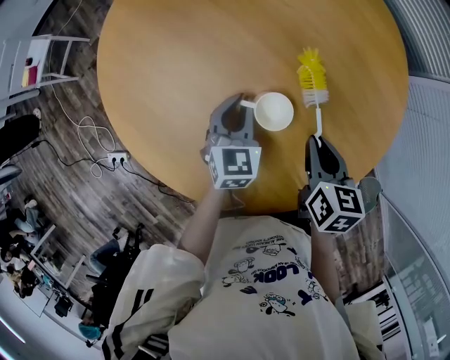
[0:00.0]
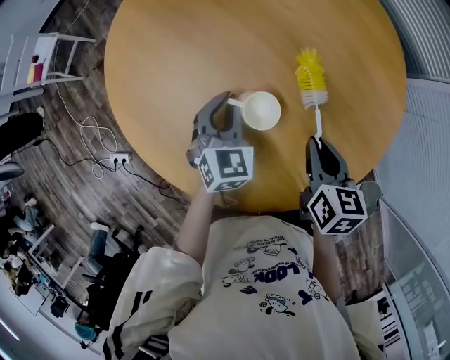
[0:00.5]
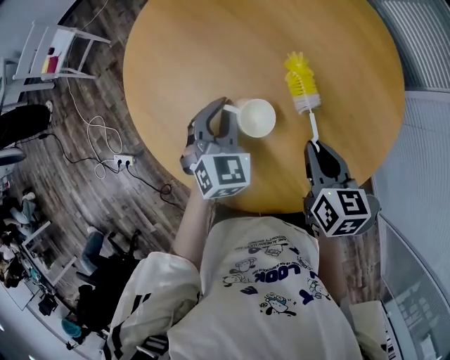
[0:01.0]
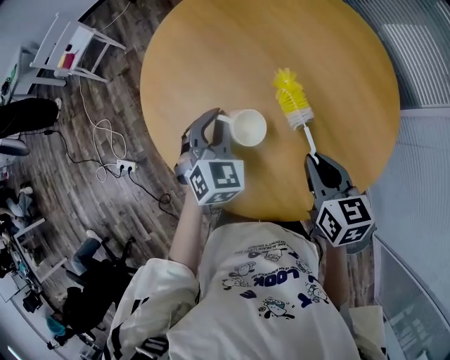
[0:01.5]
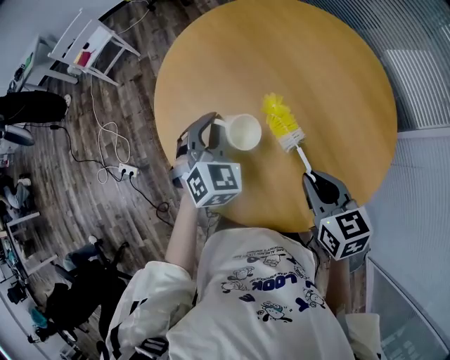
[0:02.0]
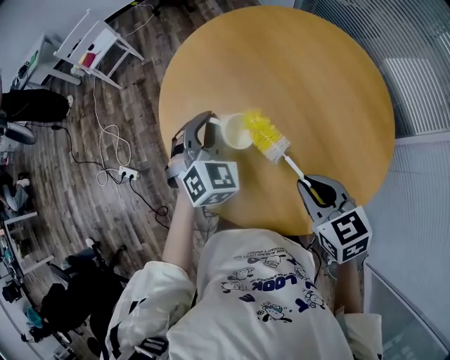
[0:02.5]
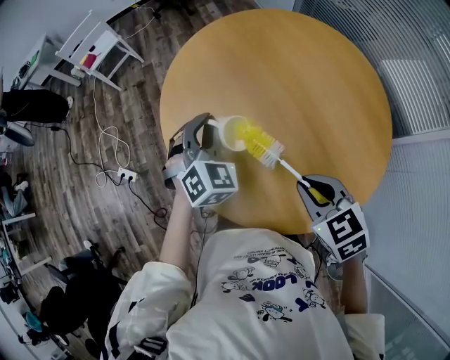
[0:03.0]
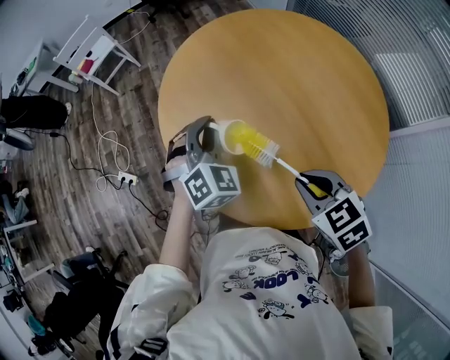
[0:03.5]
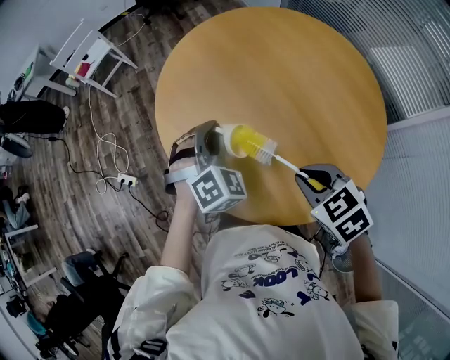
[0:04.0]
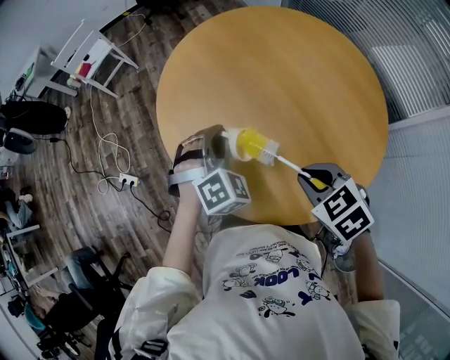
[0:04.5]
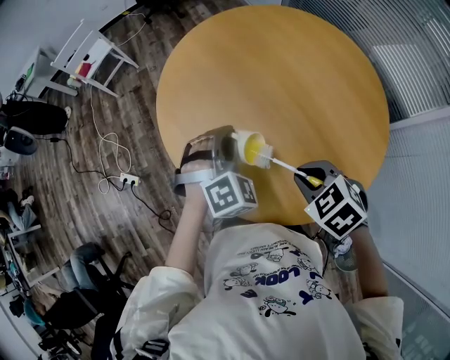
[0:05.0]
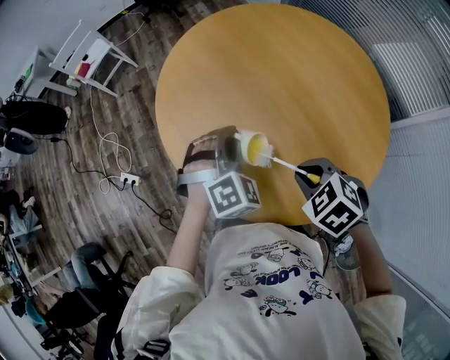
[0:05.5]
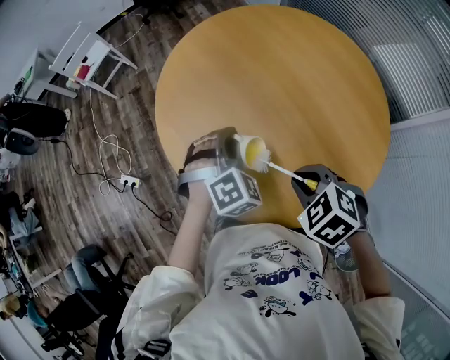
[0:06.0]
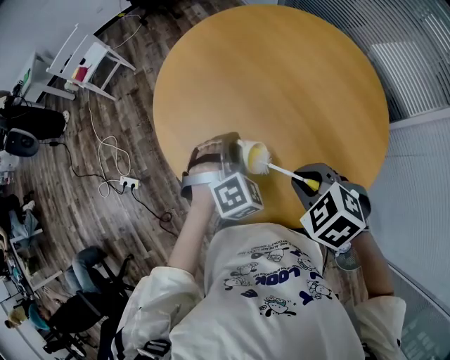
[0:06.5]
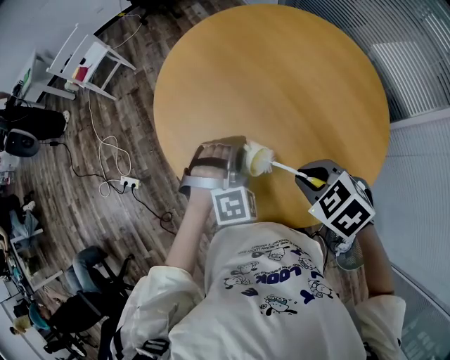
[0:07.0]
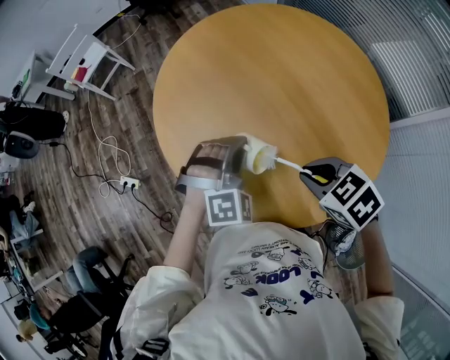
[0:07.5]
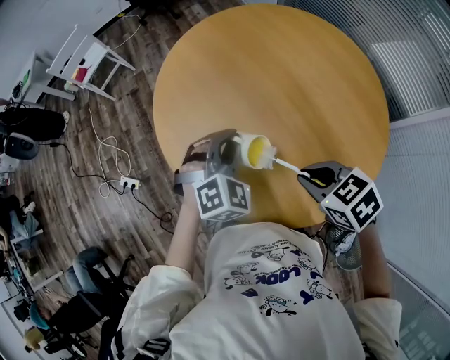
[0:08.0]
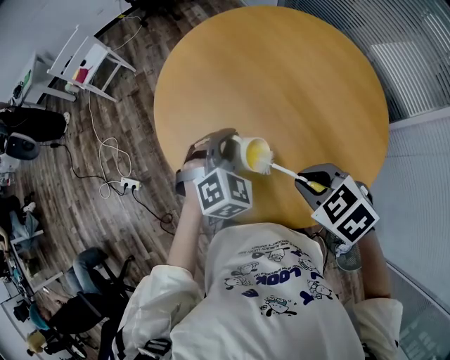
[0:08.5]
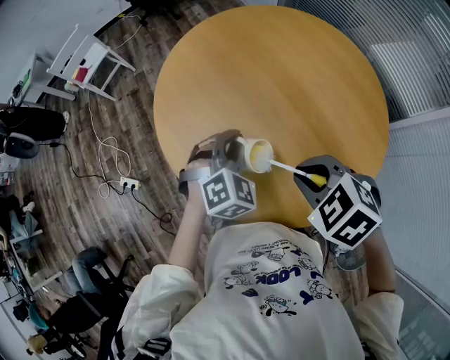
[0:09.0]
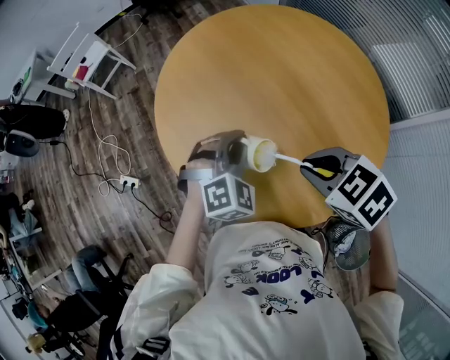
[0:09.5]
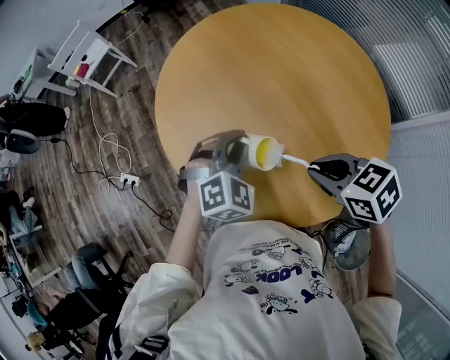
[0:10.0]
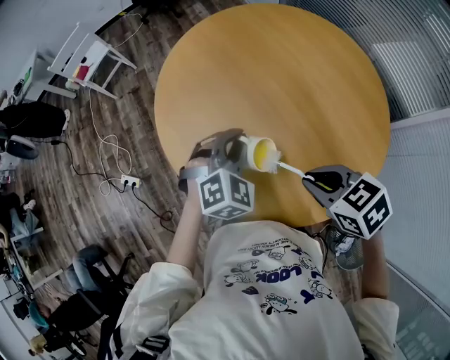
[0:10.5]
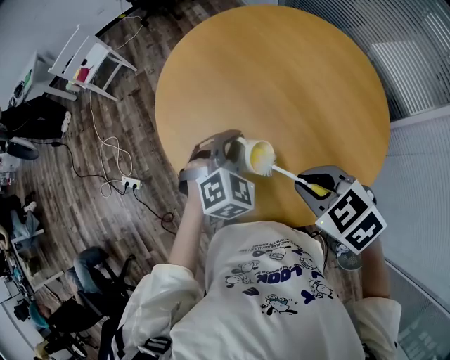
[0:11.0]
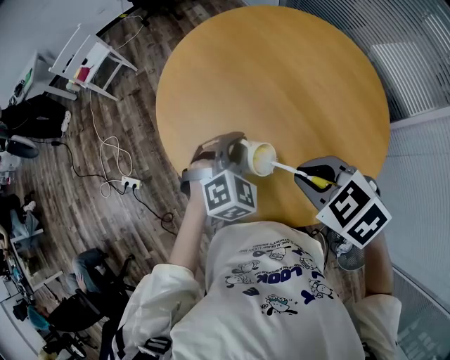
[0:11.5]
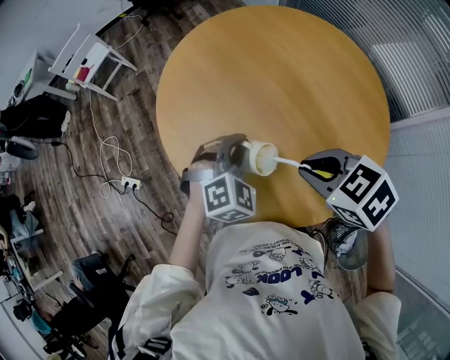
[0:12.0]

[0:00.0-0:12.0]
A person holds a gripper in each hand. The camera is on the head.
0:00.0 to 0:02.0: The two grippers go approximately 15 cm upward. The right gripper turns by approximately 40 degrees. The left gripper swivels some 30 degrees.
0:02.0 to 0:04.0: The right gripper turns by some 30 degrees. Meanwhile the left gripper moves roughly 5 cm.
0:04.0 to 0:06.0: The grippers move only a little.
0:06.0 to 0:08.0: The right gripper turns by about 20 degrees.
0:10.0 to 0:12.0: There are only small adjustments of the grippers.

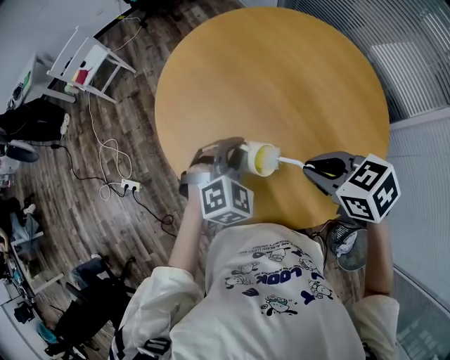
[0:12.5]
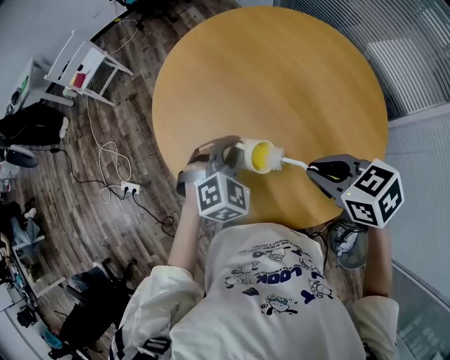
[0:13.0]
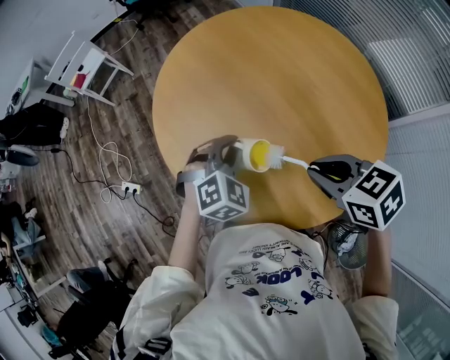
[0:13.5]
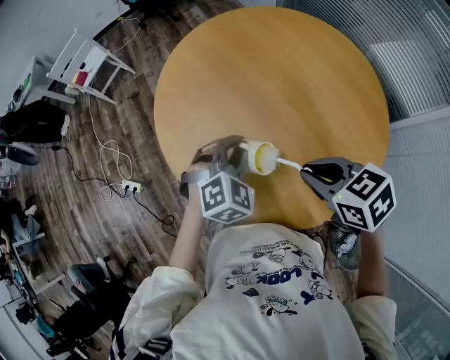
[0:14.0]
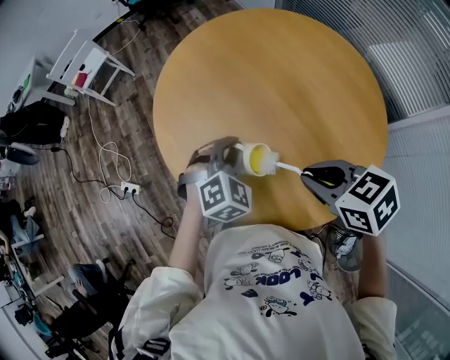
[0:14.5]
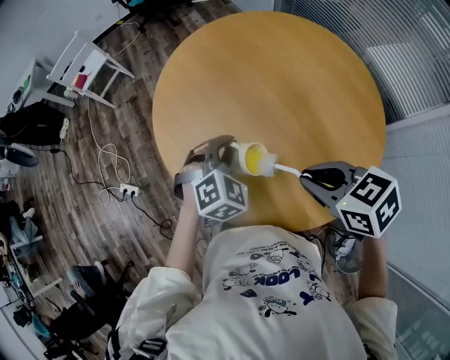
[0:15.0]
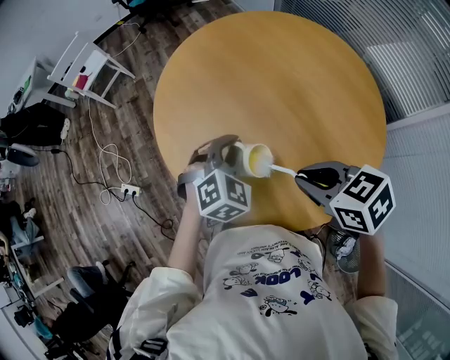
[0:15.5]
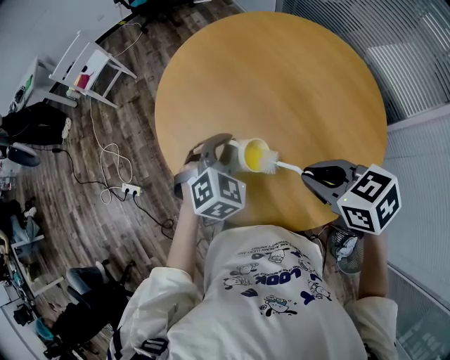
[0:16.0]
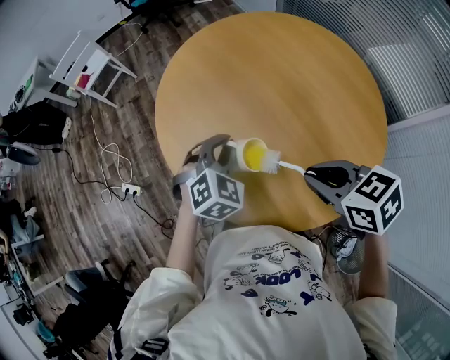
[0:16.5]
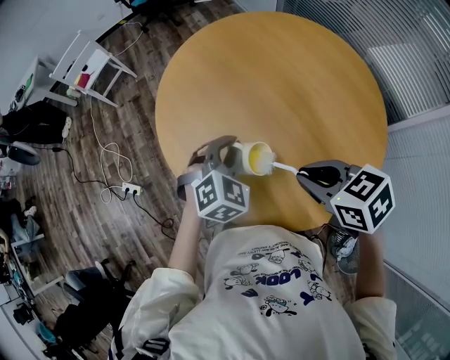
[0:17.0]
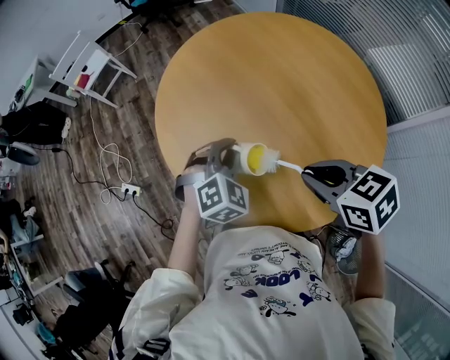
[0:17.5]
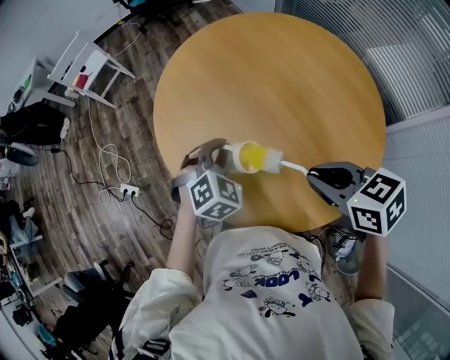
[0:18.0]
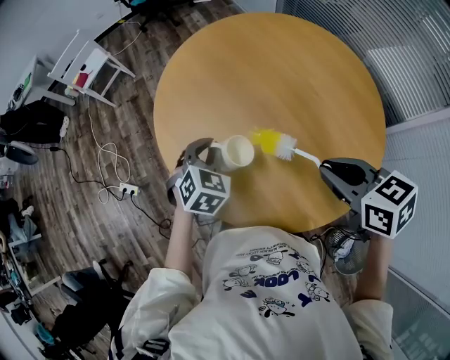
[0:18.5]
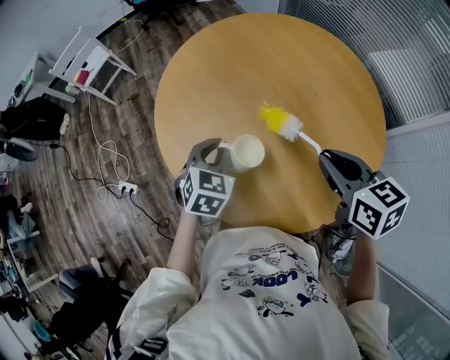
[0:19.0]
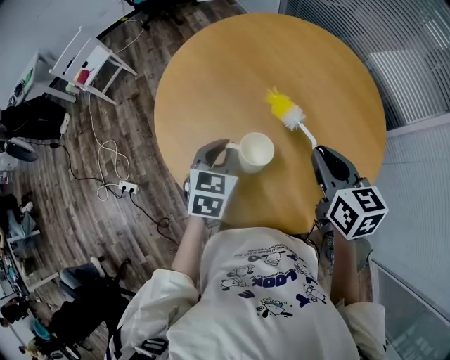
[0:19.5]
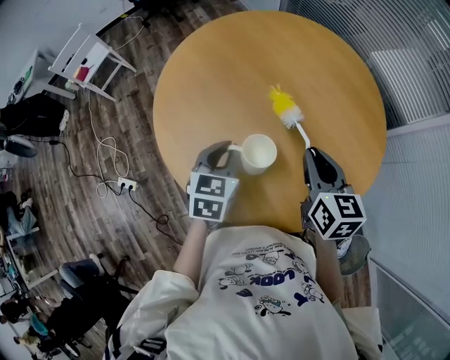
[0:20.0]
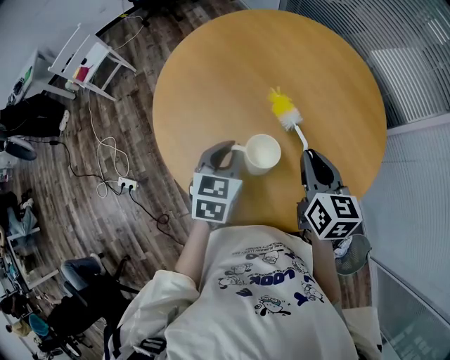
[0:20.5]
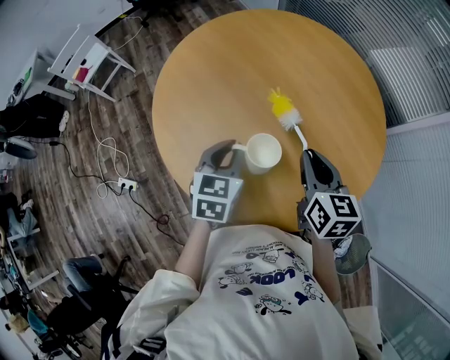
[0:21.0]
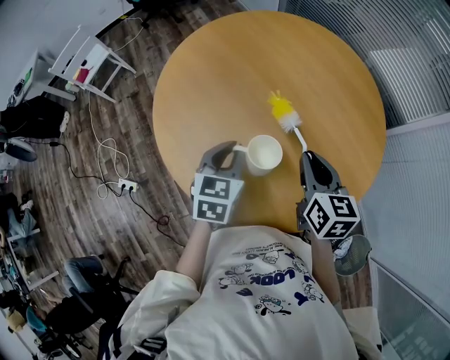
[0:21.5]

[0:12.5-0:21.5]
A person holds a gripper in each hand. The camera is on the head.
0:12.5 to 0:17.0: The grippers make only small movements.
0:17.0 to 0:19.5: The left gripper swivels some 30 degrees; the right gripper is displaced to the right by approximately 5 cm, and changes its angle by some 40 degrees.
0:19.5 to 0:21.5: The grippers move only a little.

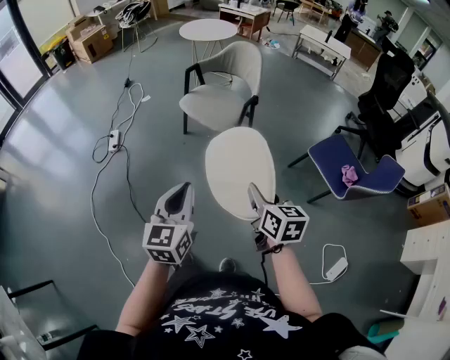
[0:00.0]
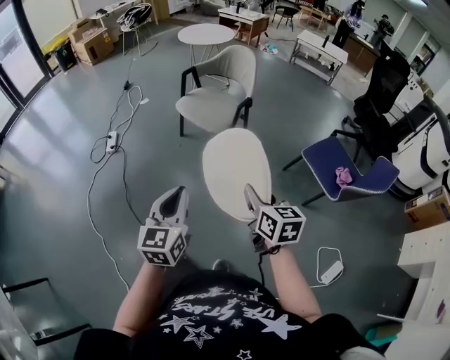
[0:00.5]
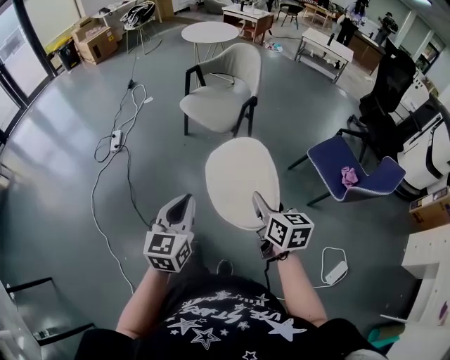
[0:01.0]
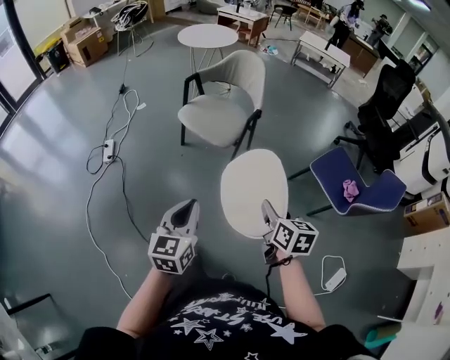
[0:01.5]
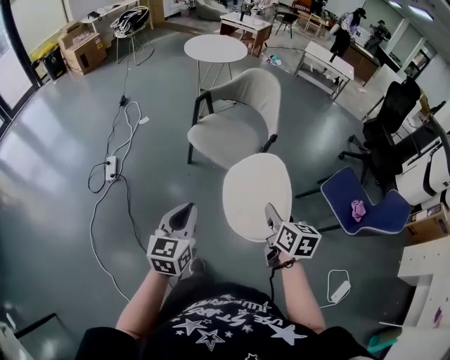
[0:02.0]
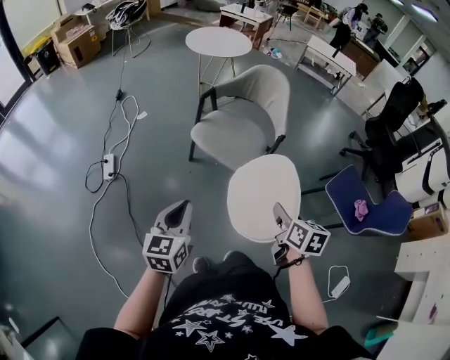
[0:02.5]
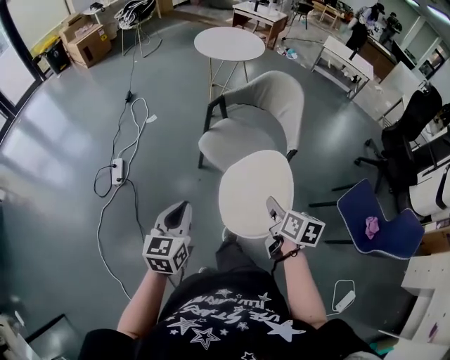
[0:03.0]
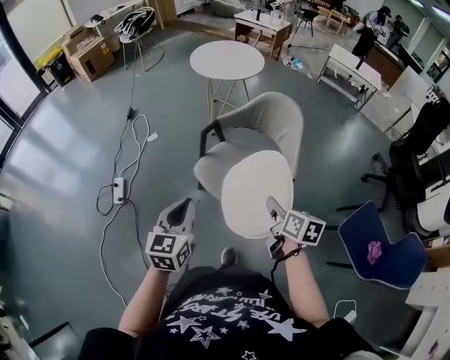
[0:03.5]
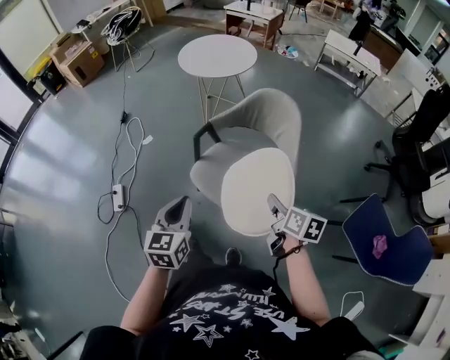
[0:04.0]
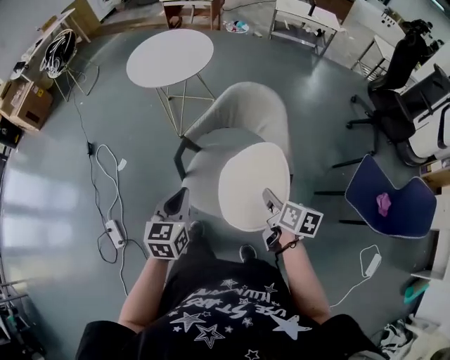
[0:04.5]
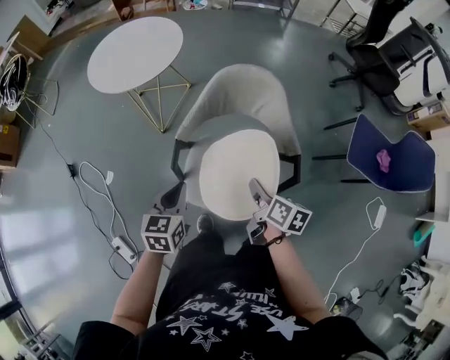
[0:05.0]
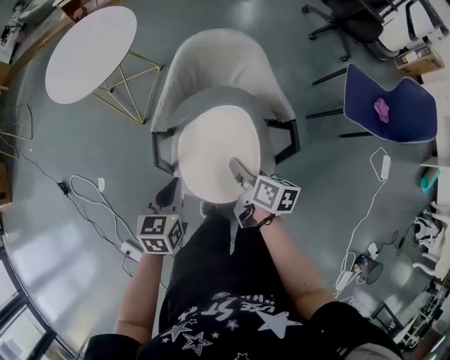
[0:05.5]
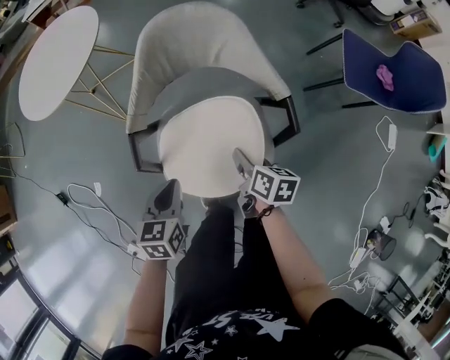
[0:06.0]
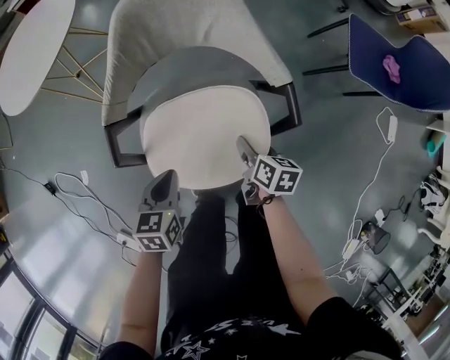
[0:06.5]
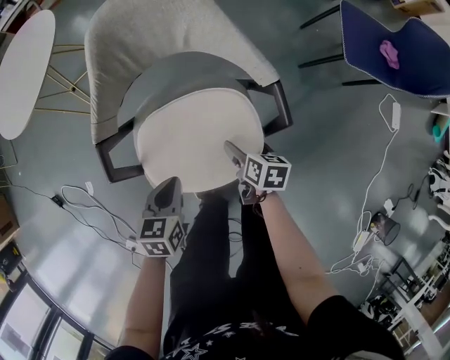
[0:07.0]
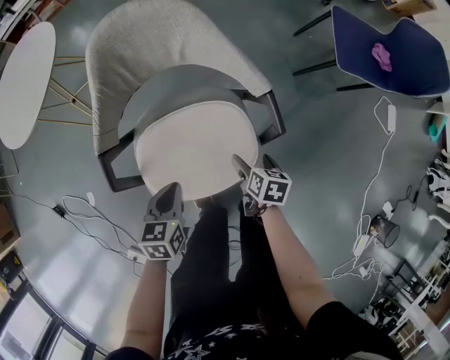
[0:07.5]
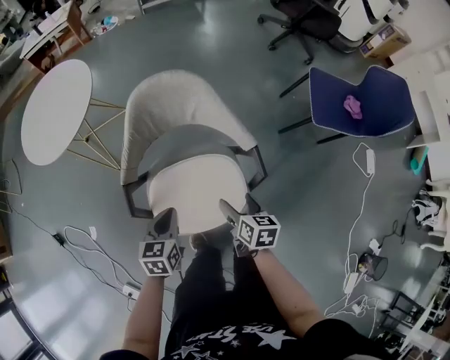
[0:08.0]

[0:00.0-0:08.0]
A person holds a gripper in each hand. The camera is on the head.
0:00.0 to 0:02.0: The right gripper is displaced forward by about 20 cm; the left gripper moves forward and to the left, about 20 cm.
0:02.0 to 0:04.0: The two grippers go approximately 35 cm forward.
0:04.0 to 0:06.0: The left gripper moves roughly 30 cm, and turns by some 50 degrees; the right gripper is displaced downward by about 20 cm, and rotates some 40 degrees.
0:06.0 to 0:08.0: The right gripper goes about 5 cm to the right, travels downward and back again, approximately 10 cm each way, and opens its fingers. The left gripper reaches approximately 5 cm downward, then returns.
